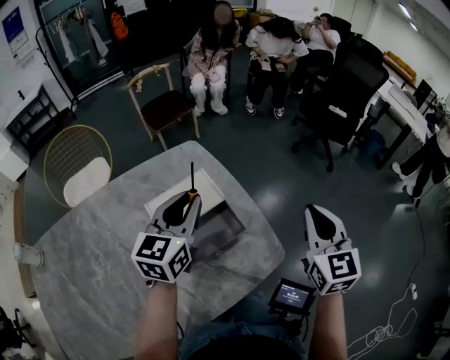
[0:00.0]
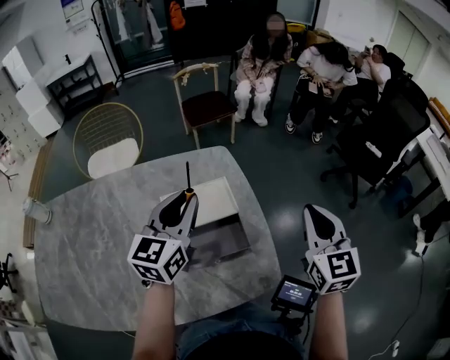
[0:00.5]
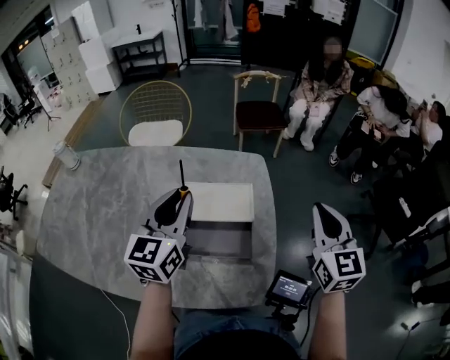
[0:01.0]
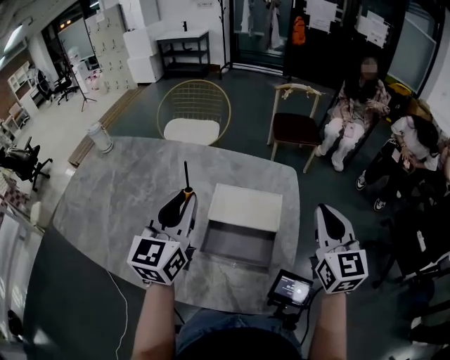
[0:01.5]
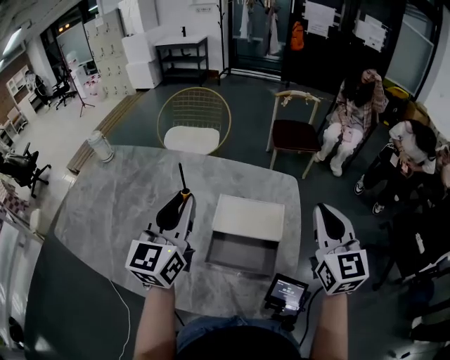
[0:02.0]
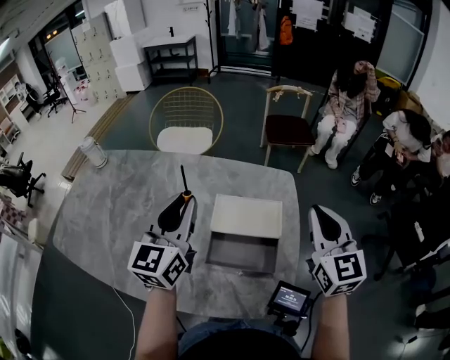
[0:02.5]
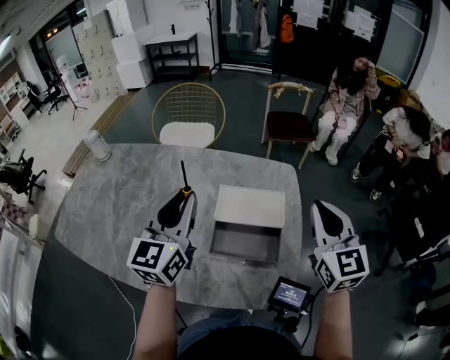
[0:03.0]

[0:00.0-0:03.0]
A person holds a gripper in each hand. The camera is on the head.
0:00.0 to 0:01.5: The right gripper moves some 20 cm, and changes its angle by approximately 40 degrees. The left gripper moves some 15 cm, and rotates approximately 50 degrees.
0:01.5 to 0:03.0: There are only small adjustments of the grippers.

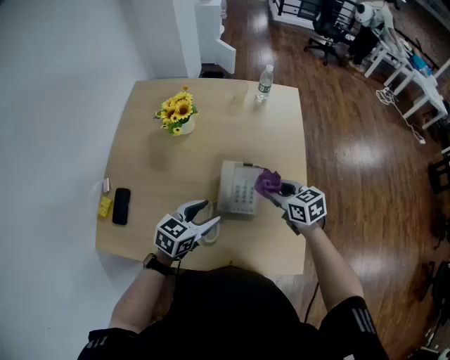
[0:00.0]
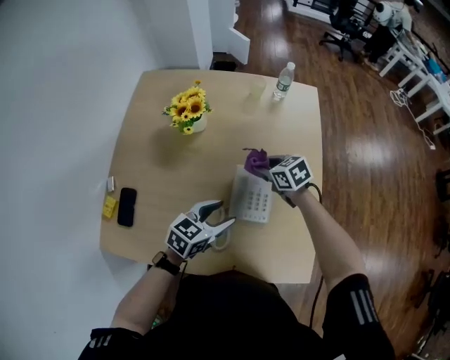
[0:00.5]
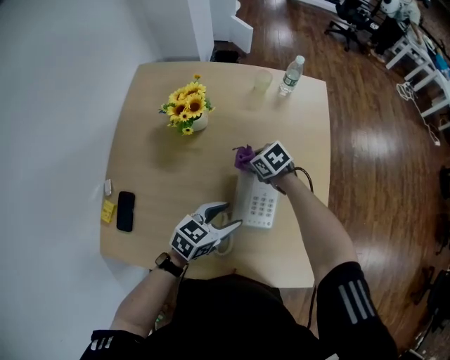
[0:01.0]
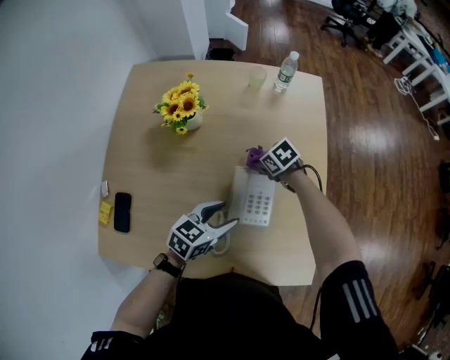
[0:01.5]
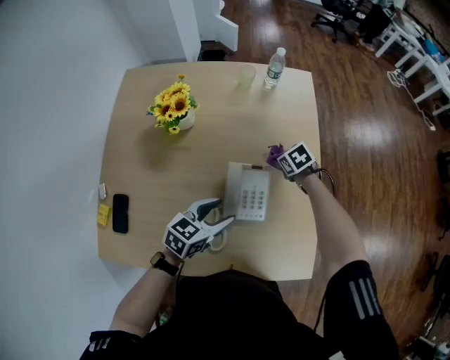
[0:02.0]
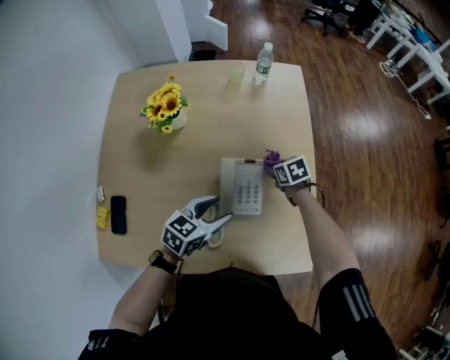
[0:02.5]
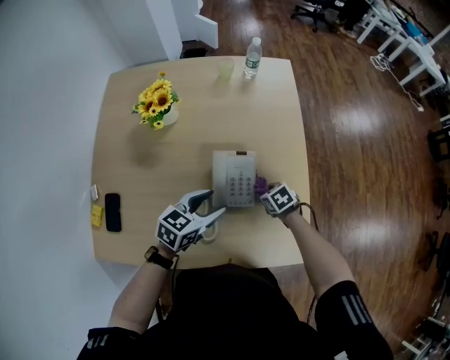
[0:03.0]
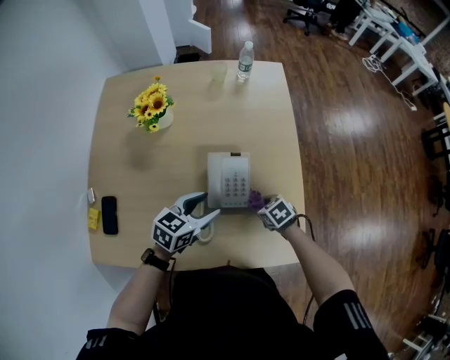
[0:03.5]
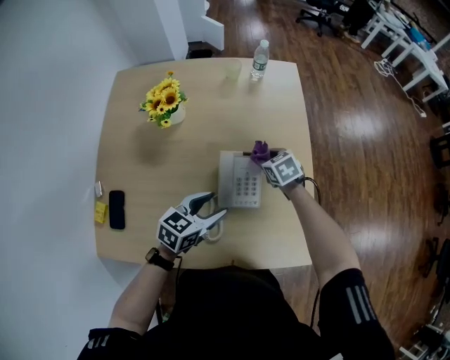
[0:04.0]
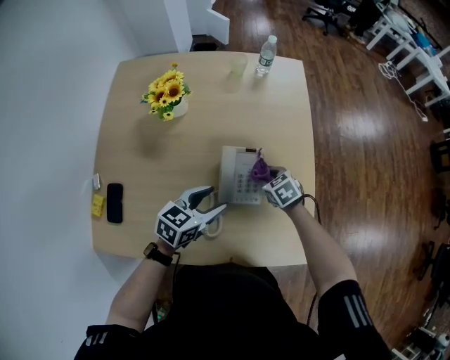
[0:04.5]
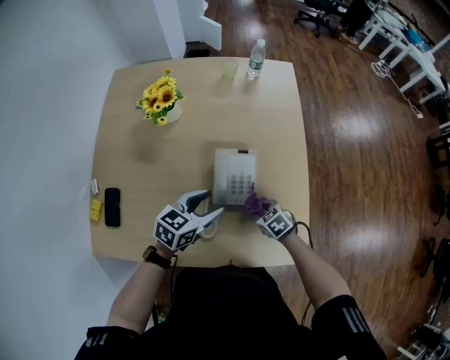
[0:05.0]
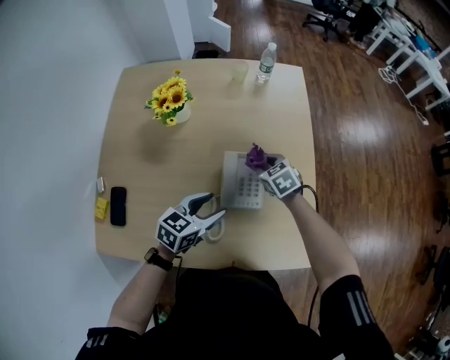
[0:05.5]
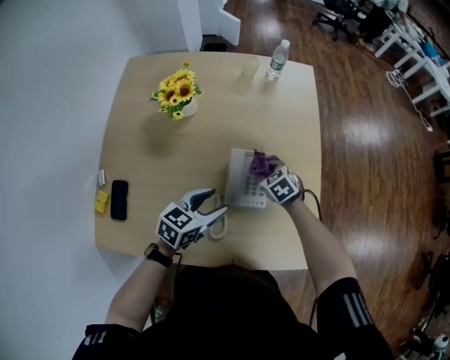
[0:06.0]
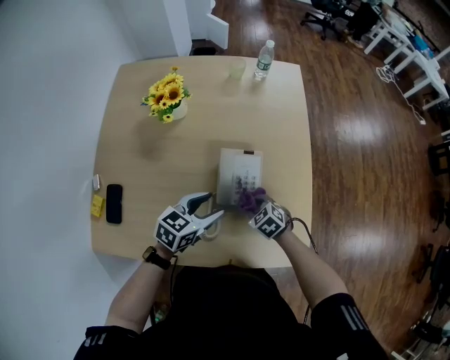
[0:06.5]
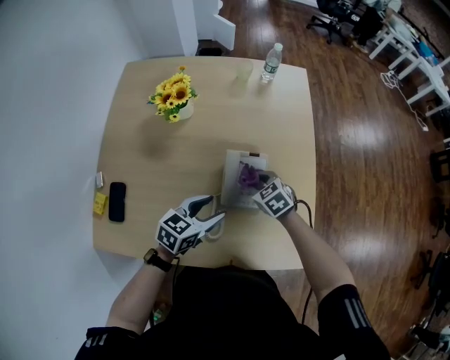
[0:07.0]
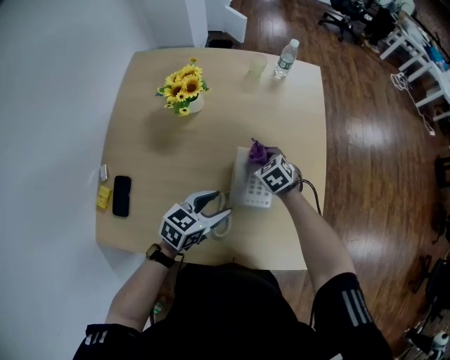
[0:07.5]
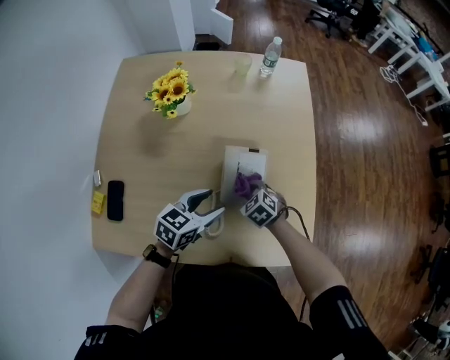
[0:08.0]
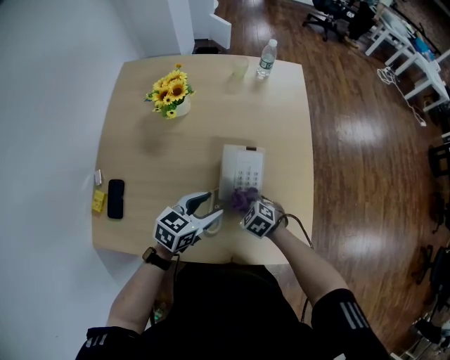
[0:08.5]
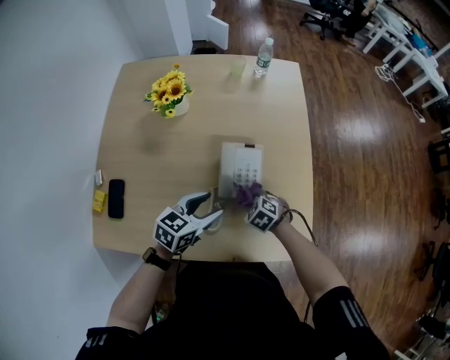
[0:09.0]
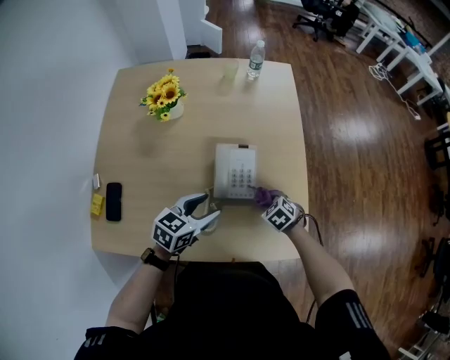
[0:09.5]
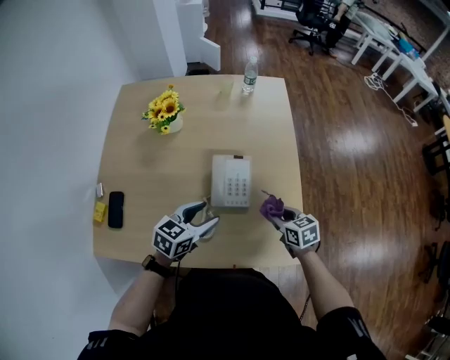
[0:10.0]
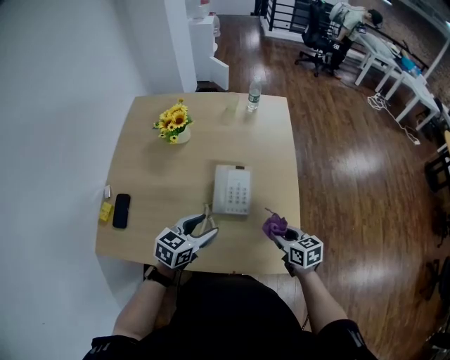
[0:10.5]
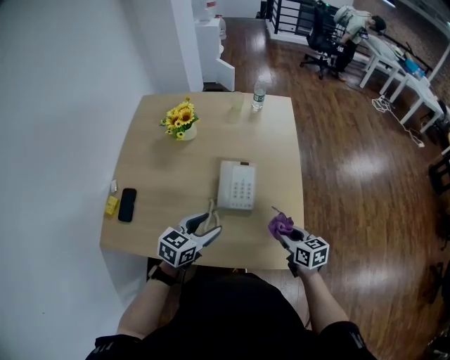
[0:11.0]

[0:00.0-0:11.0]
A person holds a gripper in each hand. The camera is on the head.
0:00.0 to 0:02.0: The right gripper ends up some 20 cm from where it was, and angles its fingers downward, by some 30 degrees, while the left gripper shifts by some 5 cm.
0:02.0 to 0:03.5: The right gripper is displaced backward by about 25 cm.
0:03.5 to 0:05.5: The right gripper moves forward and backward over some 20 cm, changing direction 2 times, and rotates roughly 20 degrees.
0:05.5 to 0:07.5: The right gripper moves approximately 15 cm backward and comes back.
0:07.5 to 0:09.0: The right gripper travels backward by roughly 20 cm.
0:09.0 to 0:11.0: The left gripper goes some 5 cm backward. Meanwhile the right gripper travels to the right, upward and backward by about 20 cm, and tilts its fingers some 30 degrees upward.

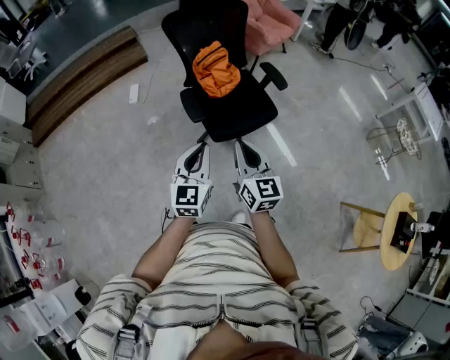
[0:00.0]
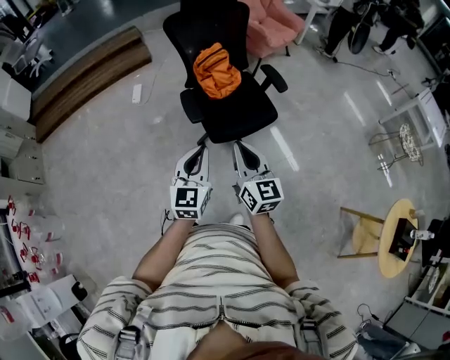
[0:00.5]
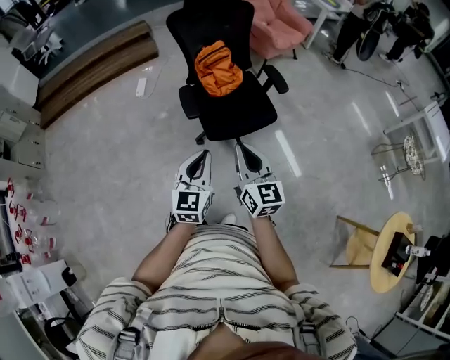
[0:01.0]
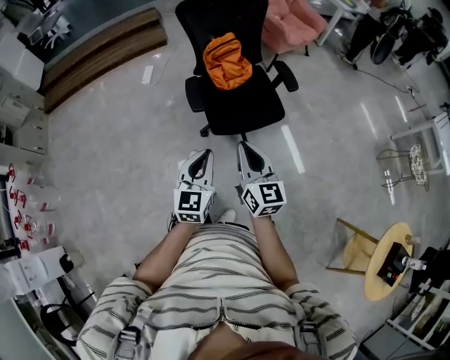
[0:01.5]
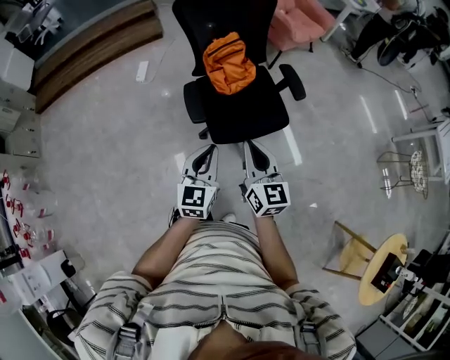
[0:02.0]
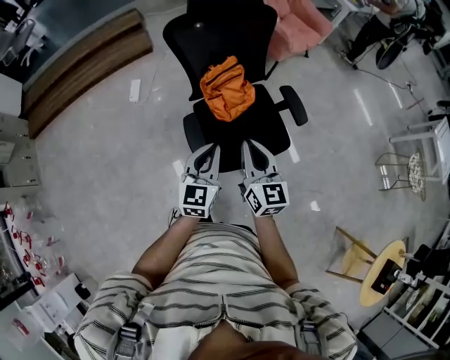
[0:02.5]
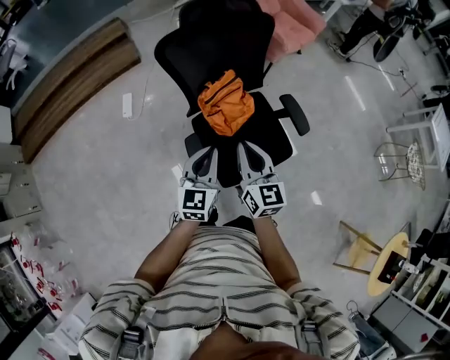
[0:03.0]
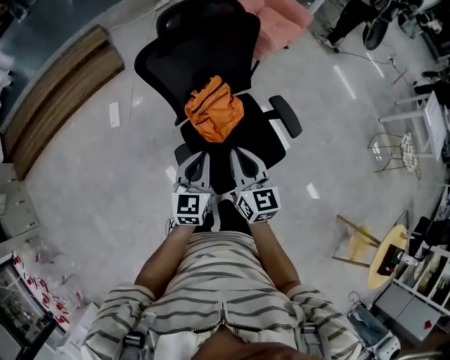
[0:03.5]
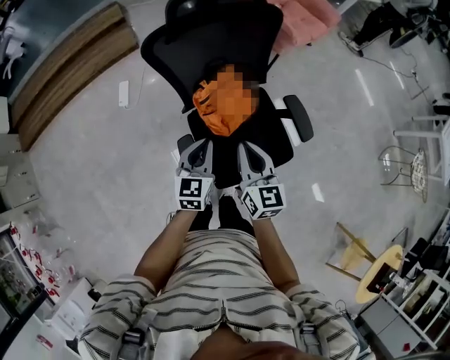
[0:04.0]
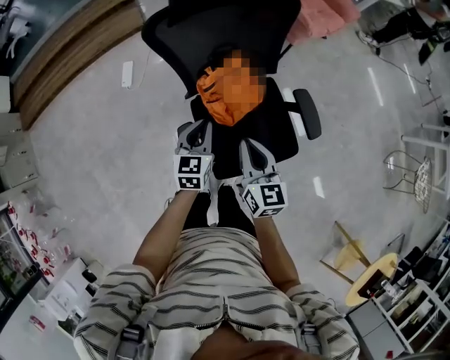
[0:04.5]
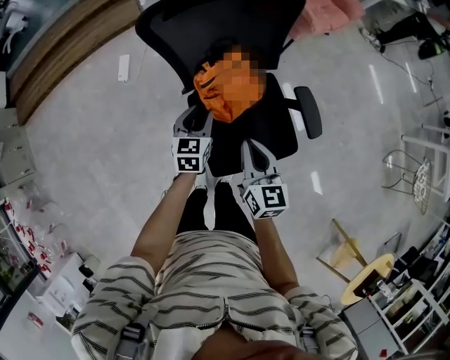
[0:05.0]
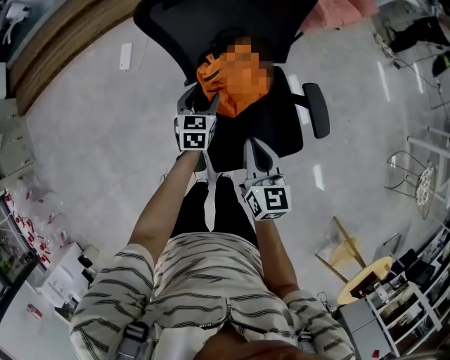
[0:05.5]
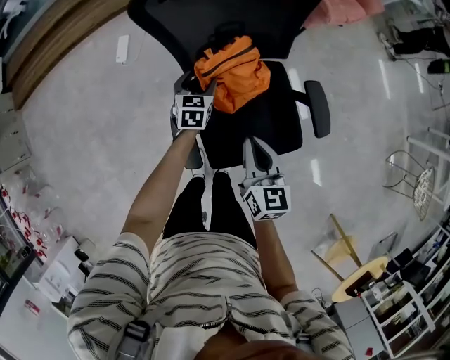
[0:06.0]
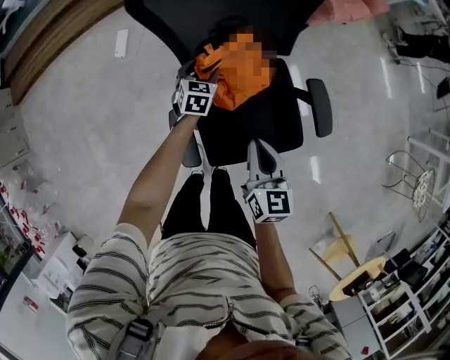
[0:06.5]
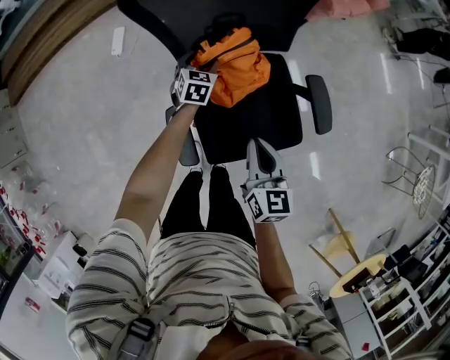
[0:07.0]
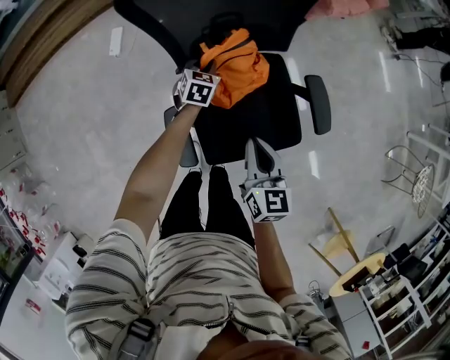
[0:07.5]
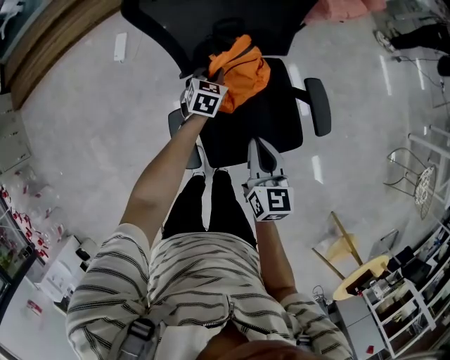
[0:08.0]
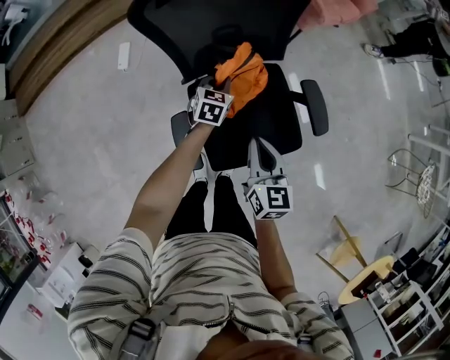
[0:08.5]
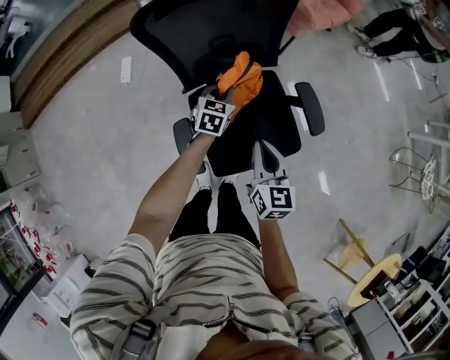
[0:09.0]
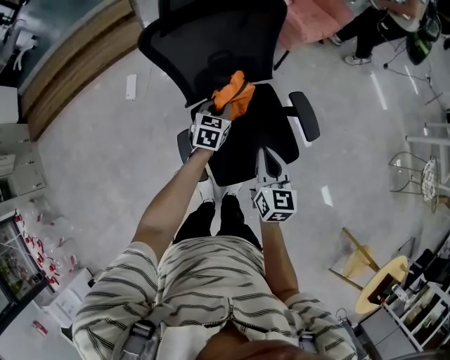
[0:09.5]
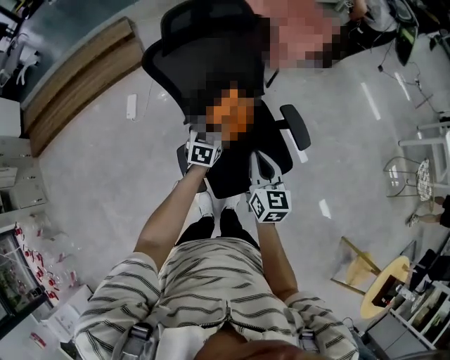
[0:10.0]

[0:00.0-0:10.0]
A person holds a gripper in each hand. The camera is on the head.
0:00.0 to 0:02.0: The right gripper goes roughly 15 cm forward and to the right. Meanwhile the left gripper shifts roughly 15 cm forward, downward and to the right.
0:02.0 to 0:04.0: The grippers both shift forward by approximately 35 cm.
0:04.0 to 0:06.0: The left gripper is displaced downward and forward by some 25 cm, and opens its fingers; the right gripper heads downward, covering some 10 cm.
0:06.0 to 0:08.0: The left gripper is displaced to the right by approximately 5 cm, and closes its fingers.
0:08.0 to 0:10.0: The left gripper heads upward and backward, covering some 20 cm. Meanwhile the right gripper heads upward, covering some 10 cm.

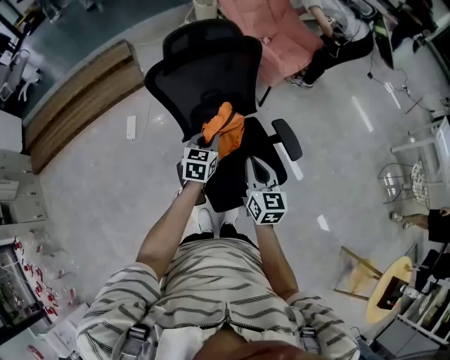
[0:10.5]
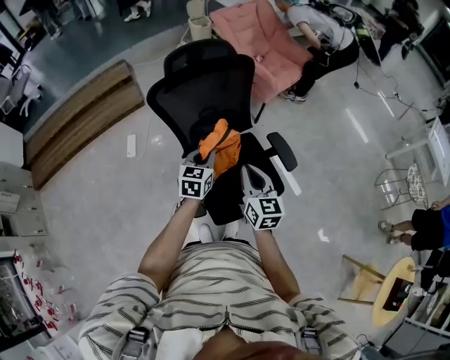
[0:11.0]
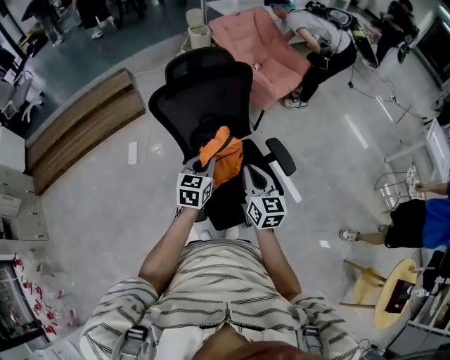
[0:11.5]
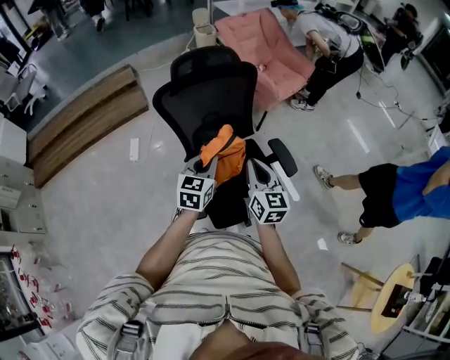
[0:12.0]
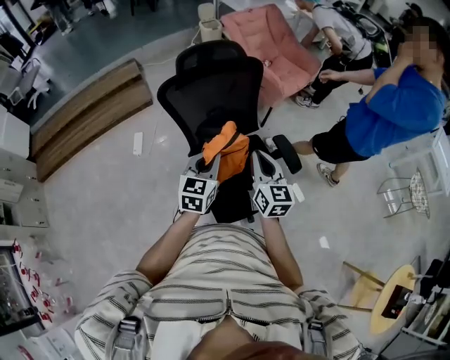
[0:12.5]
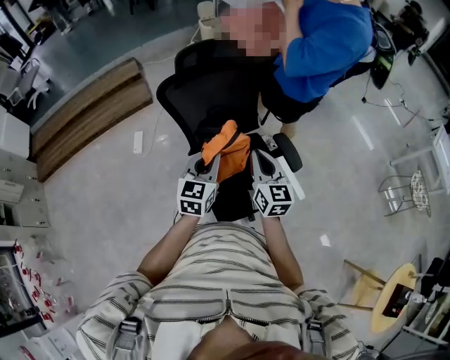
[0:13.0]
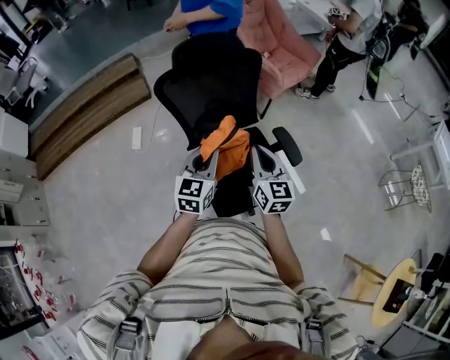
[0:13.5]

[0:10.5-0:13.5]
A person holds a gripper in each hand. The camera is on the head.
0:10.5 to 0:12.0: The left gripper travels upward and backward by roughly 10 cm, while the right gripper goes roughly 5 cm upward.
0:12.0 to 0:13.5: There are only small adjustments of the grippers.
